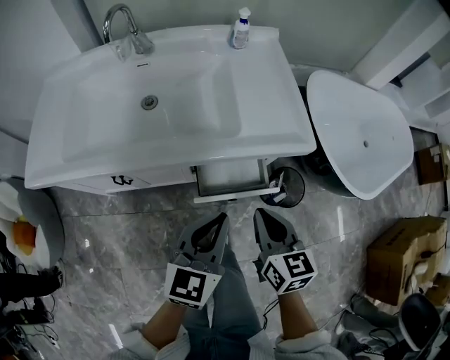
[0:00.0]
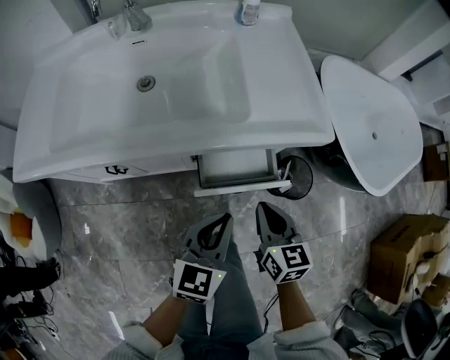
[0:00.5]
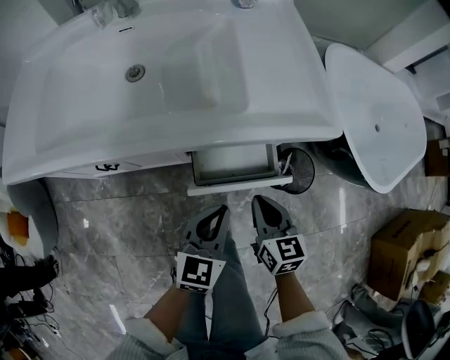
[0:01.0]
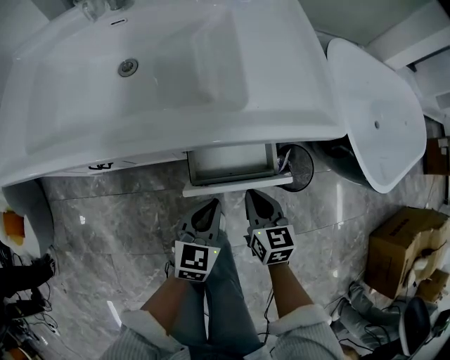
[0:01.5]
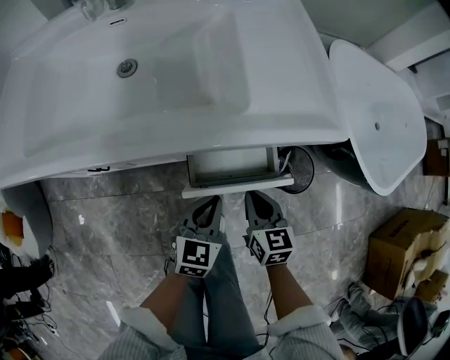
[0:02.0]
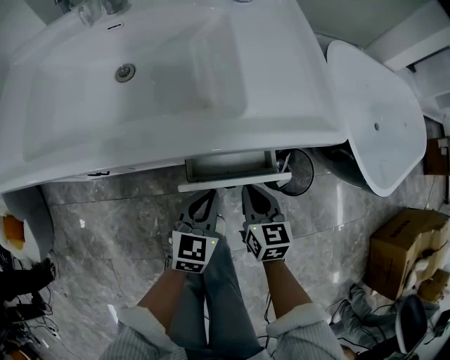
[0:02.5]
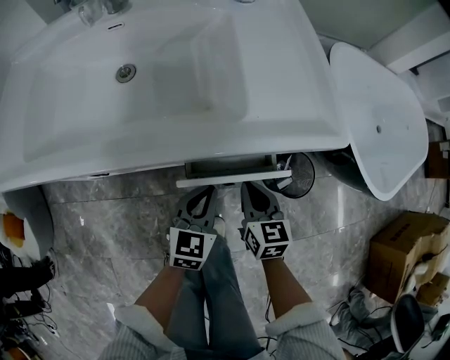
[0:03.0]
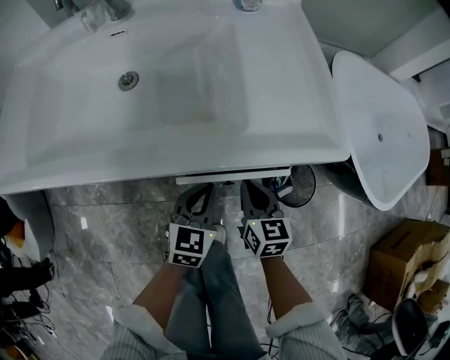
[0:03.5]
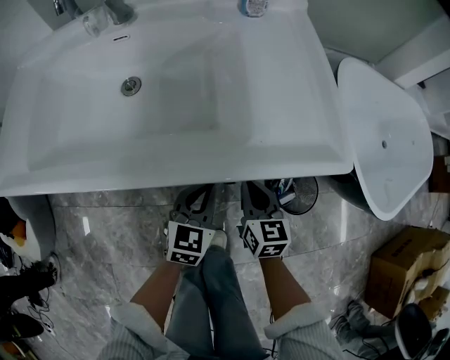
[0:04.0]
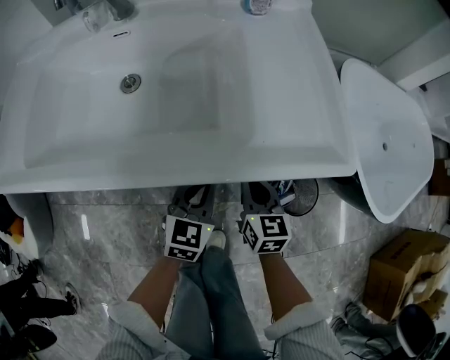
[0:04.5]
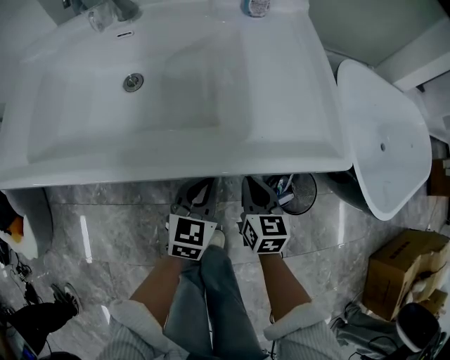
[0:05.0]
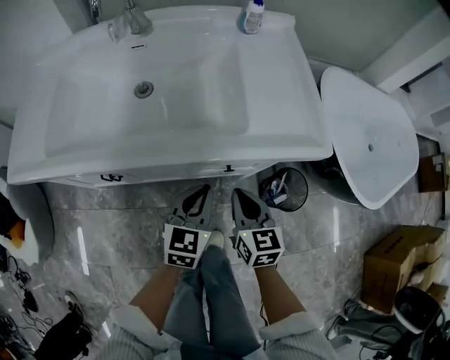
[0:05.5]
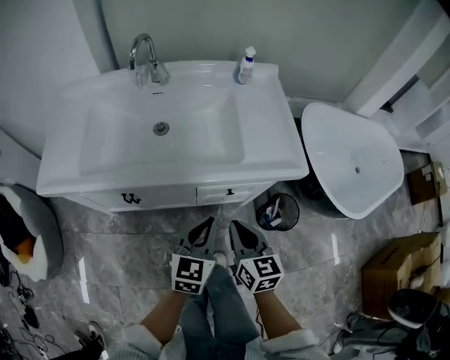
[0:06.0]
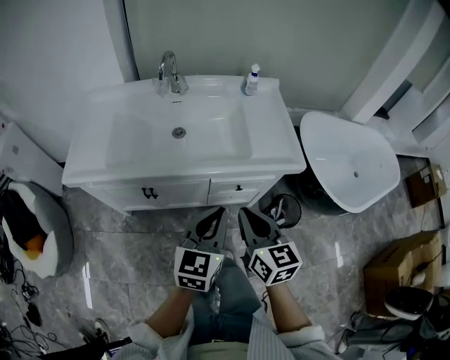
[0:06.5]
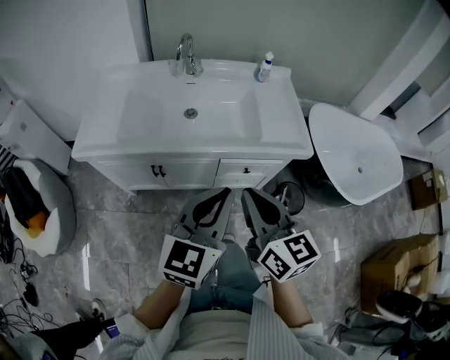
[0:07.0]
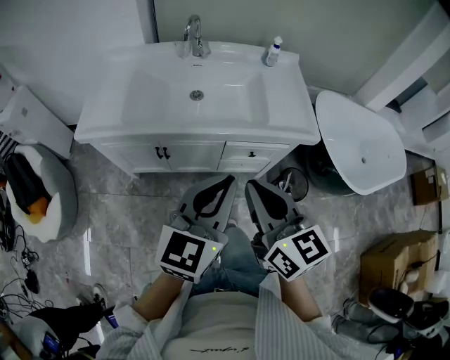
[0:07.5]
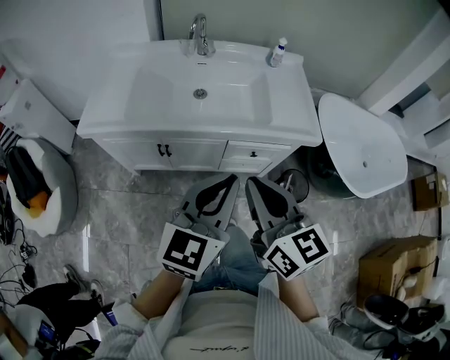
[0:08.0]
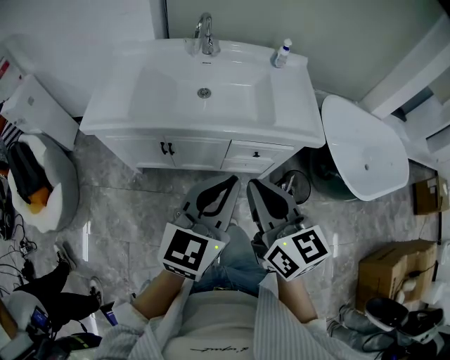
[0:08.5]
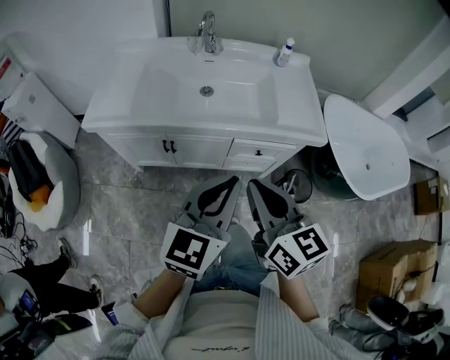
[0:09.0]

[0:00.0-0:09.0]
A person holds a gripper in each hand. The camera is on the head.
0:00.0 to 0:02.0: The grippers both shift downward by about 20 cm.
0:02.0 to 0:04.5: Both grippers move forward, some 10 cm.
0:04.5 to 0:07.0: The two grippers go approximately 40 cm upward and backward. The left gripper rotates roughly 20 degrees, while the right gripper changes its angle by about 20 degrees.
0:07.0 to 0:09.0: There are only small adjustments of the grippers.

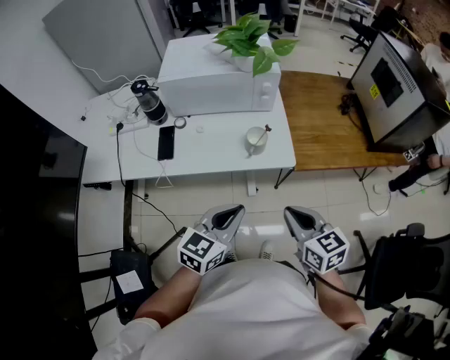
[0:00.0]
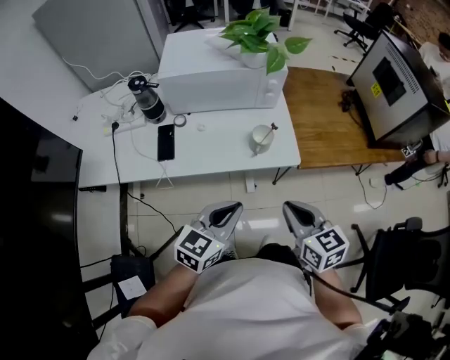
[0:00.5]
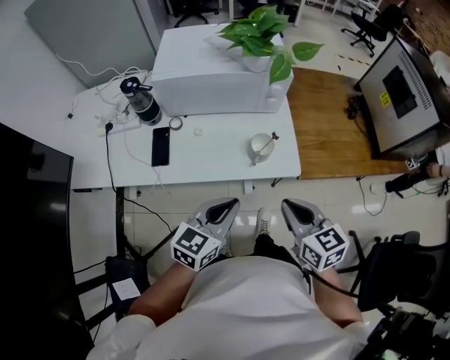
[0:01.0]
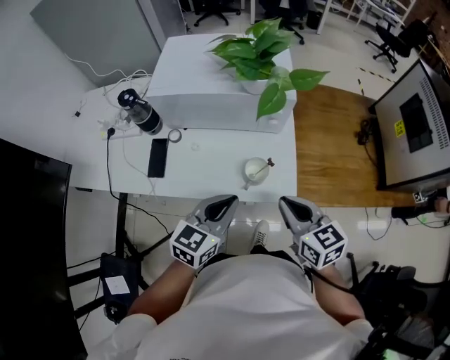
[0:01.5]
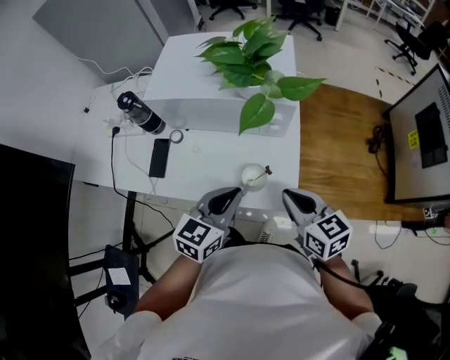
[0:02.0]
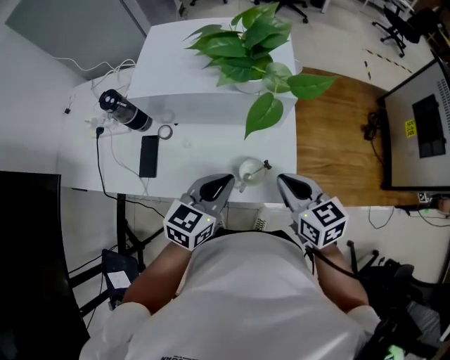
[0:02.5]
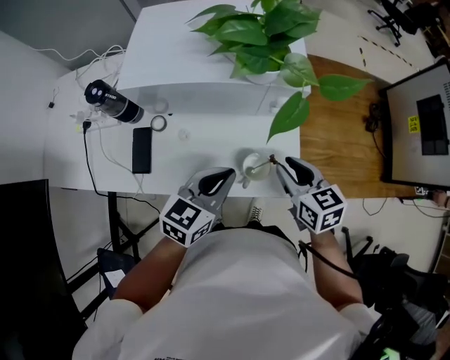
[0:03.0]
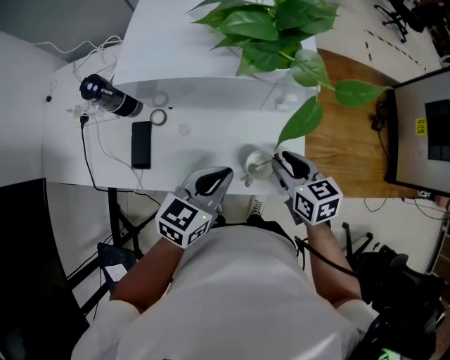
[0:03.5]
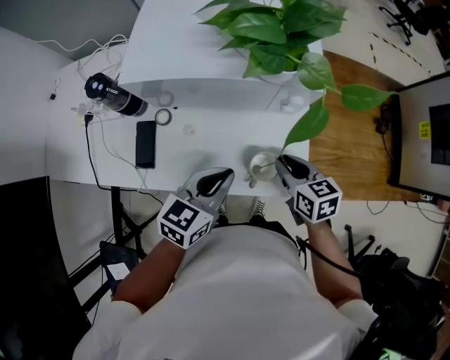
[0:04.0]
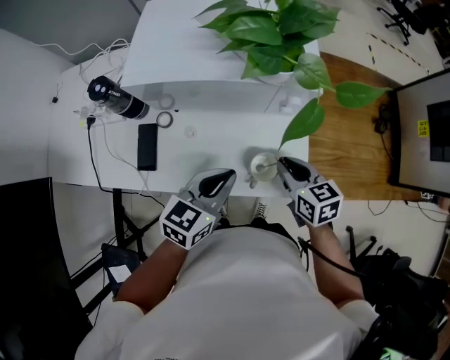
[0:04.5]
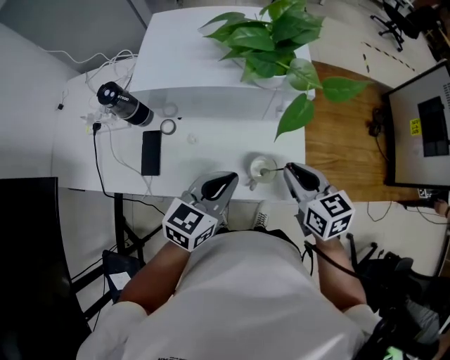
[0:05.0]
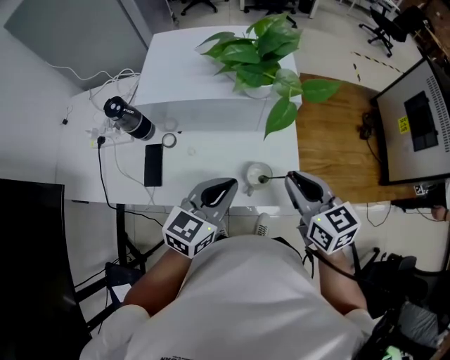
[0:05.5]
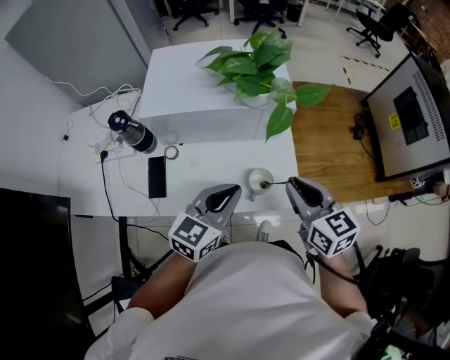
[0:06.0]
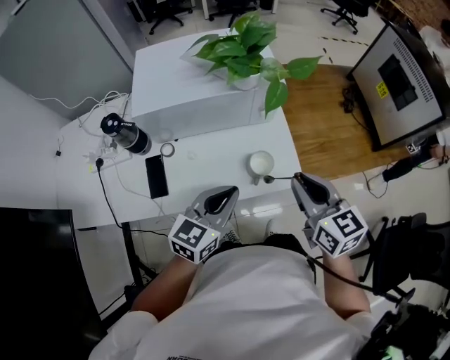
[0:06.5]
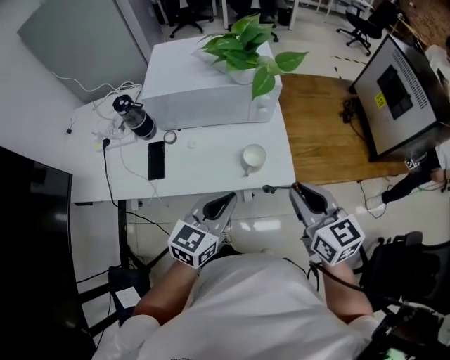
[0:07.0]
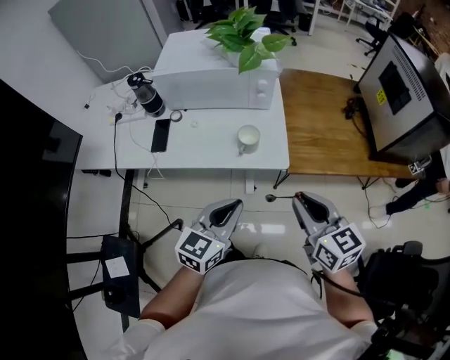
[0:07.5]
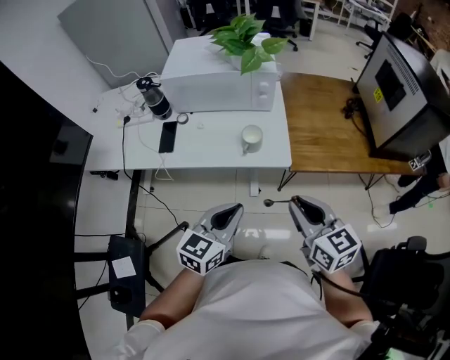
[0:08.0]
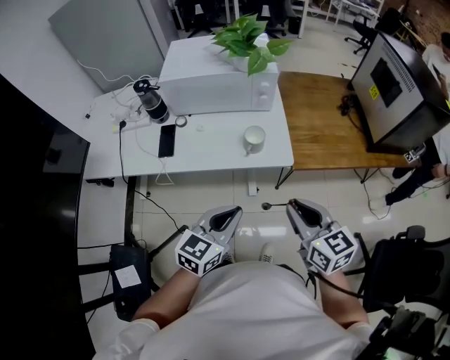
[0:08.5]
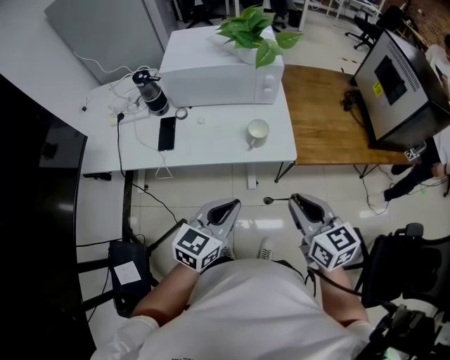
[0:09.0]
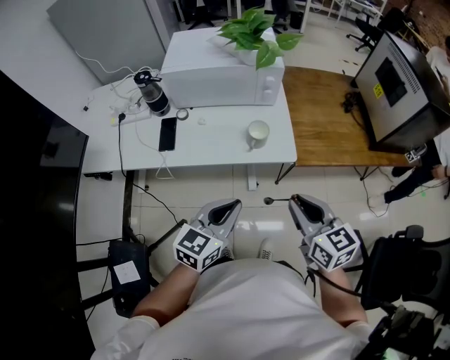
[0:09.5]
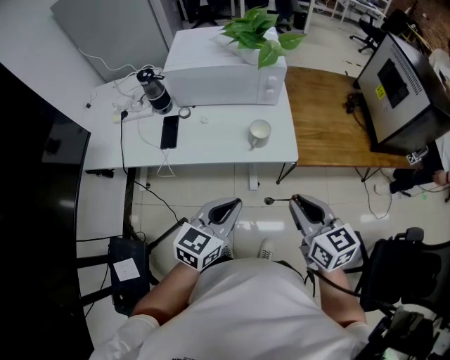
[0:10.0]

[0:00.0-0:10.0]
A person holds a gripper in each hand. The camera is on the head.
0:00.0 to 0:02.0: The grippers both shift forward by roughly 25 cm.
0:02.0 to 0:04.0: The right gripper is displaced downward and forward by about 15 cm. Meanwhile the left gripper heads to the left, covering about 5 cm.
0:04.0 to 0:06.0: The right gripper goes about 15 cm upward, while the left gripper shifts approximately 10 cm upward.
0:06.0 to 0:08.0: Both grippers travel together backward, some 25 cm.
0:08.0 to 0:10.0: The left gripper moves to the left, approximately 5 cm.

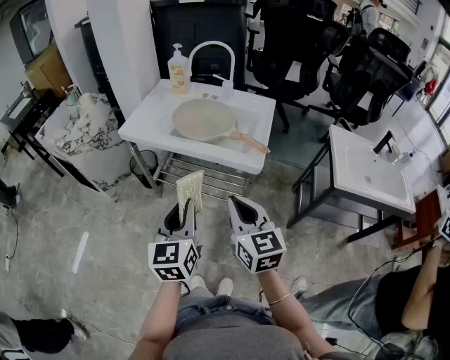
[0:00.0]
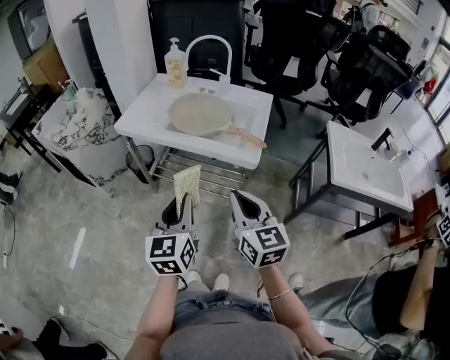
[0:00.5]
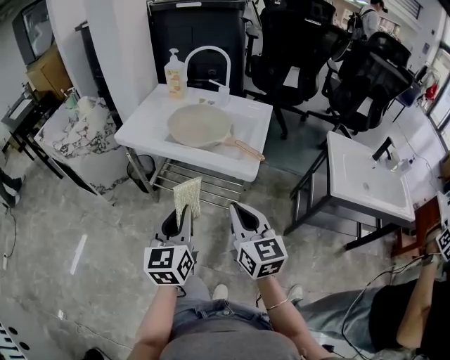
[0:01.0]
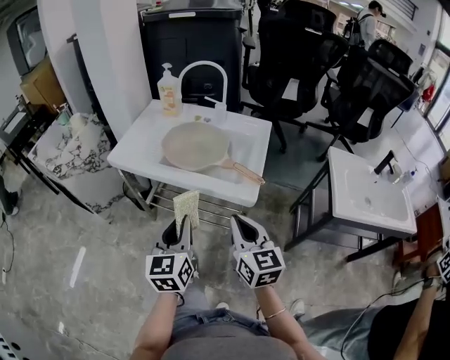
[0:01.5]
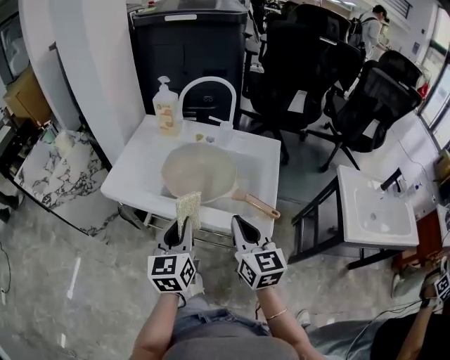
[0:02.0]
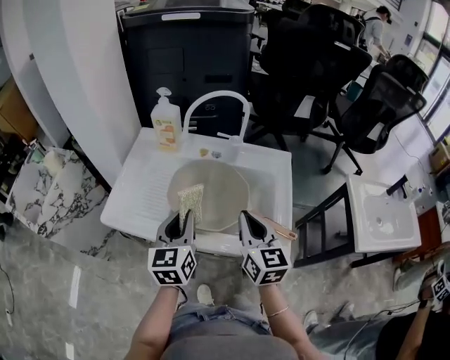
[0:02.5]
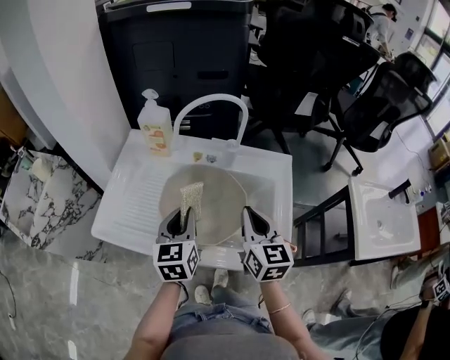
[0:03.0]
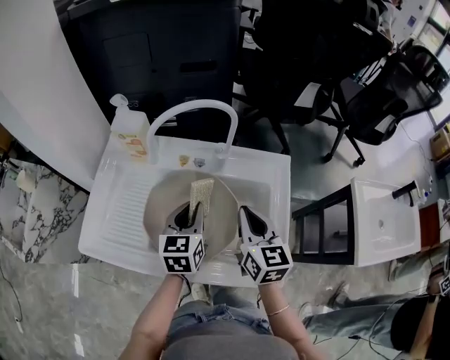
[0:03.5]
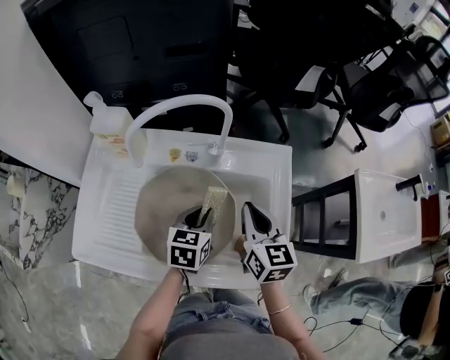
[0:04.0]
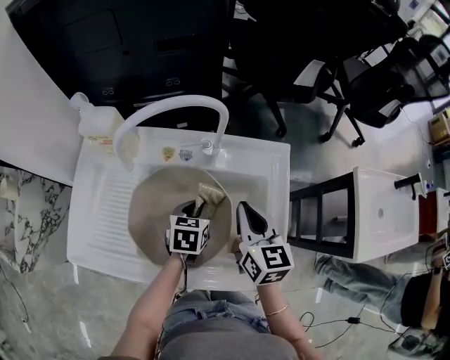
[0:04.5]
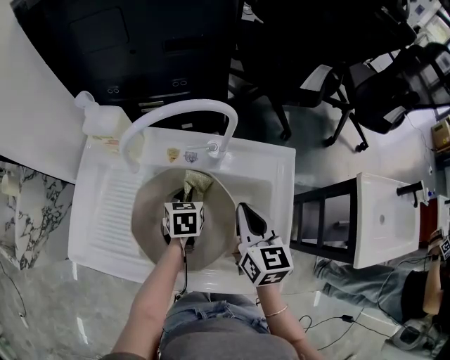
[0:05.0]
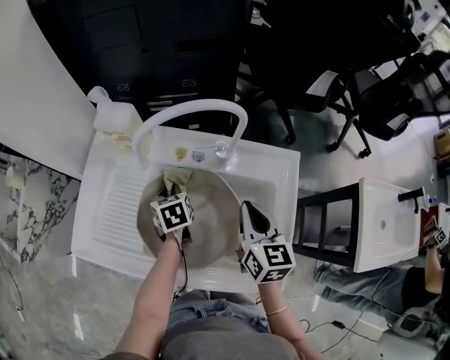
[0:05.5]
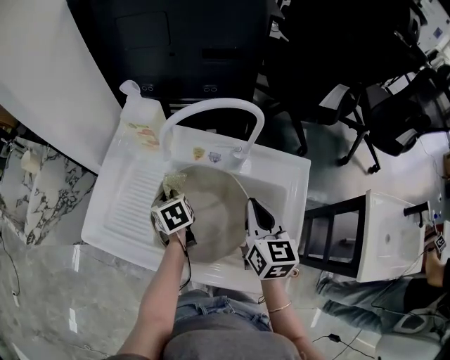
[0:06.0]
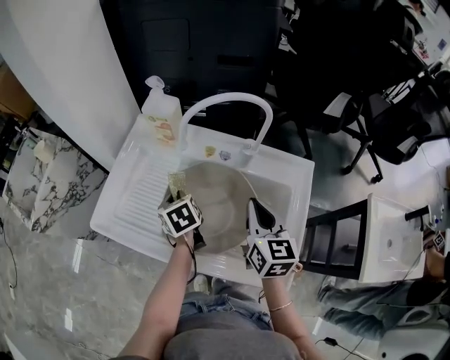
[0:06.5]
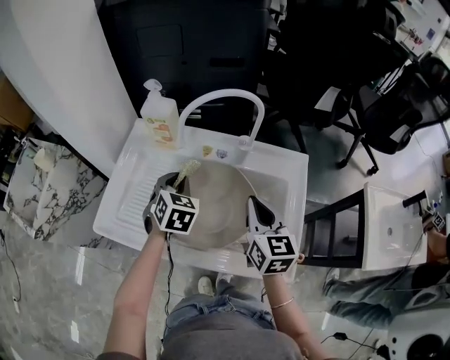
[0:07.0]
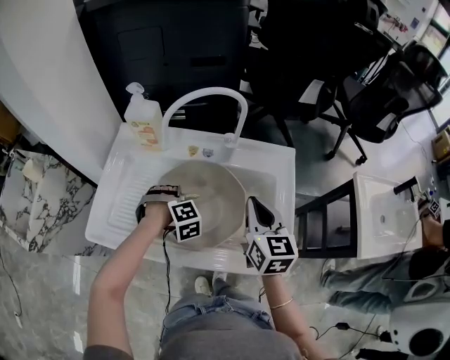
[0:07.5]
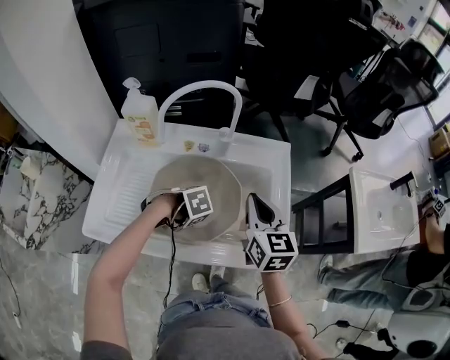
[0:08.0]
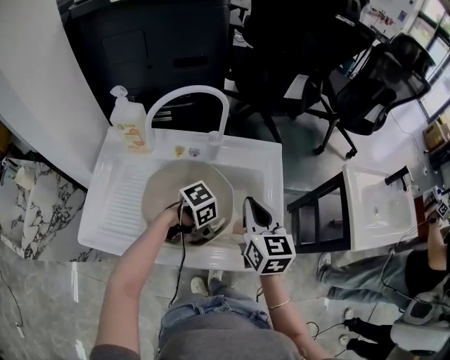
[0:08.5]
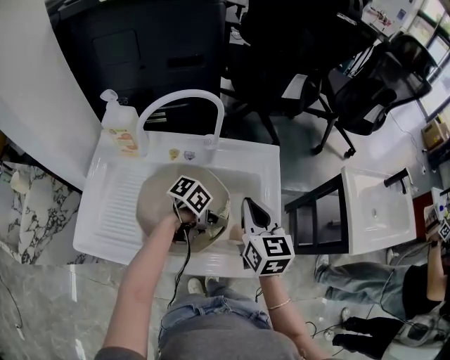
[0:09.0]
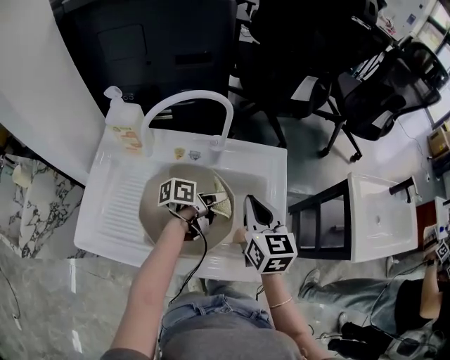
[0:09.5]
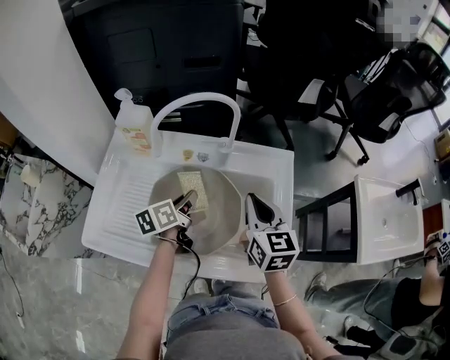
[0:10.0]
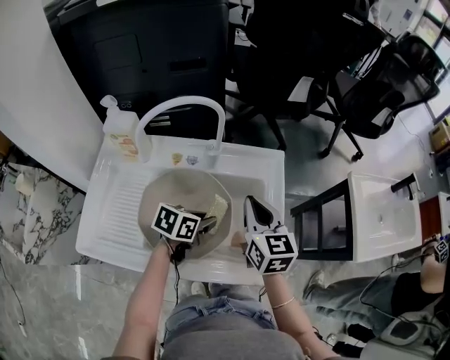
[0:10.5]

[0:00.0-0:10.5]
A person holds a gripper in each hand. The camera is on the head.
0:00.0 to 0:02.0: Both grippers travel together forward, about 25 cm.
0:02.0 to 0:04.0: The left gripper moves forward and downward, approximately 30 cm, and changes its angle by roughly 40 degrees, while the right gripper goes about 25 cm forward.
0:04.0 to 0:06.5: The right gripper shifts by about 5 cm; the left gripper ends up some 20 cm from where it was, and rotates roughly 50 degrees.
0:06.5 to 0:08.5: The right gripper shifts by approximately 5 cm, while the left gripper goes upward and returns, about 5 cm each way, and swivels roughly 110 degrees.
0:08.5 to 0:10.5: The left gripper turns by roughly 50 degrees.
